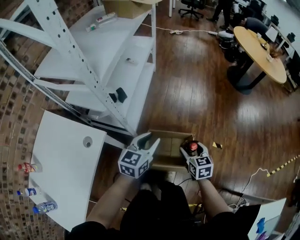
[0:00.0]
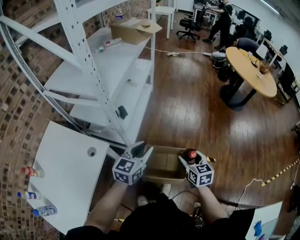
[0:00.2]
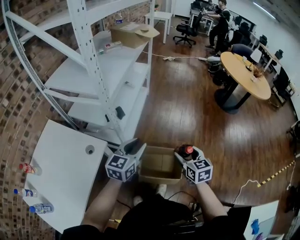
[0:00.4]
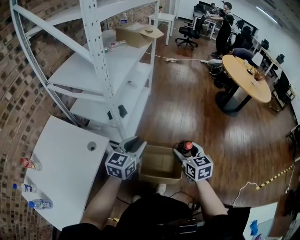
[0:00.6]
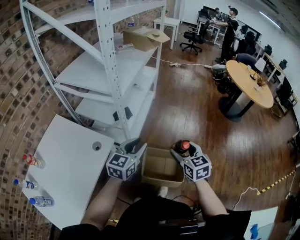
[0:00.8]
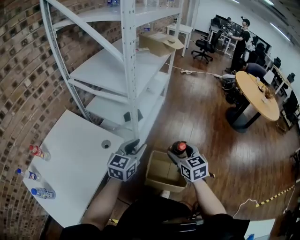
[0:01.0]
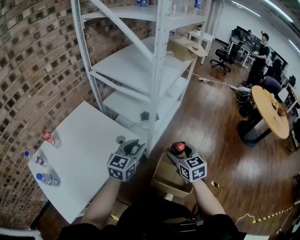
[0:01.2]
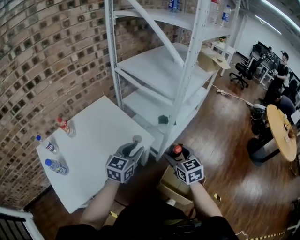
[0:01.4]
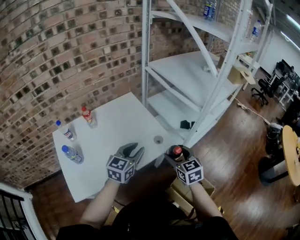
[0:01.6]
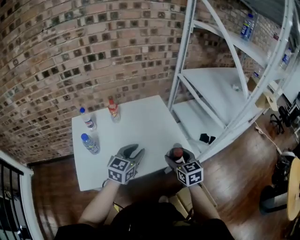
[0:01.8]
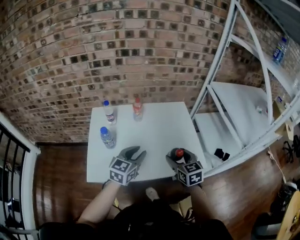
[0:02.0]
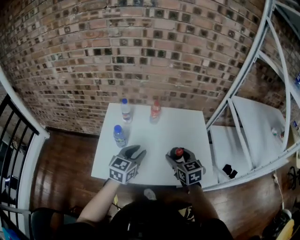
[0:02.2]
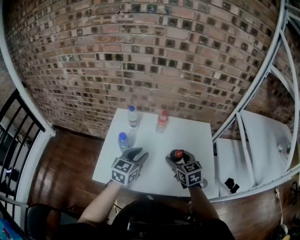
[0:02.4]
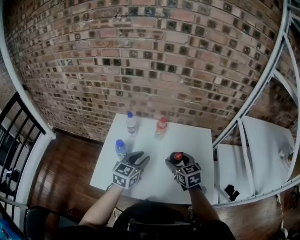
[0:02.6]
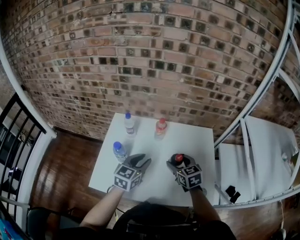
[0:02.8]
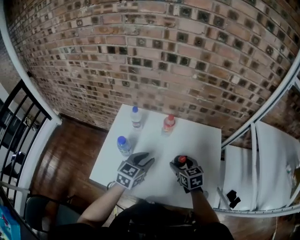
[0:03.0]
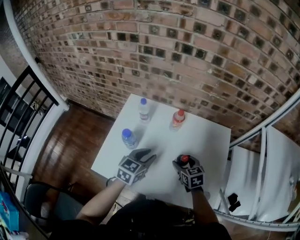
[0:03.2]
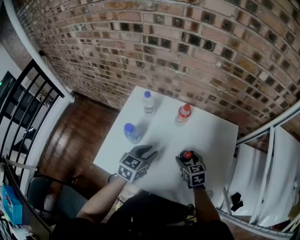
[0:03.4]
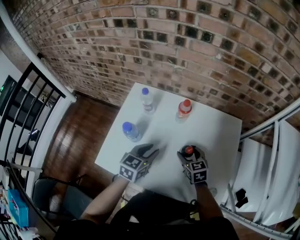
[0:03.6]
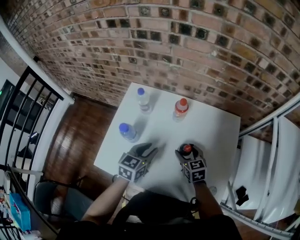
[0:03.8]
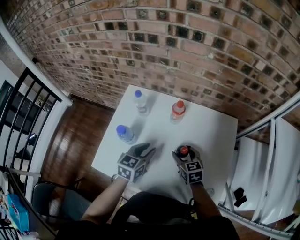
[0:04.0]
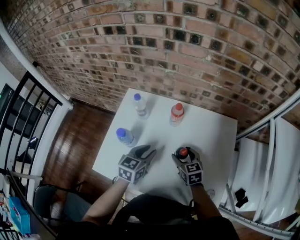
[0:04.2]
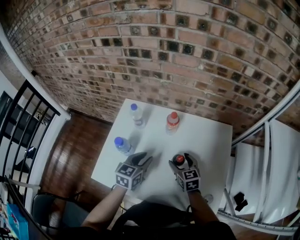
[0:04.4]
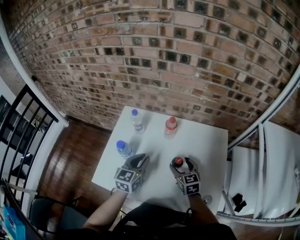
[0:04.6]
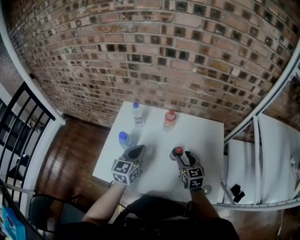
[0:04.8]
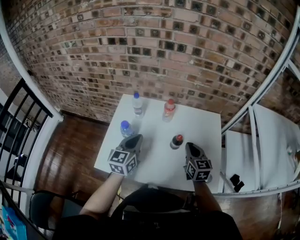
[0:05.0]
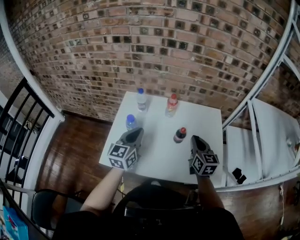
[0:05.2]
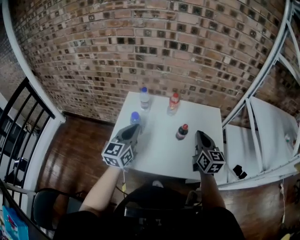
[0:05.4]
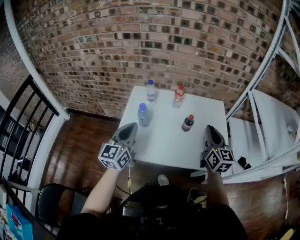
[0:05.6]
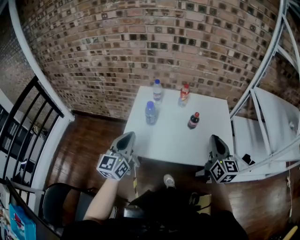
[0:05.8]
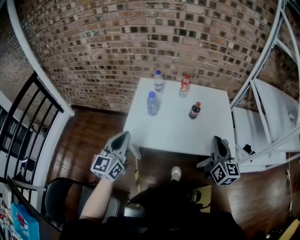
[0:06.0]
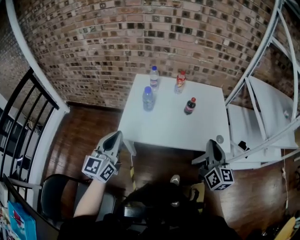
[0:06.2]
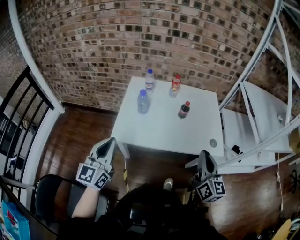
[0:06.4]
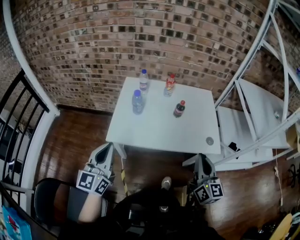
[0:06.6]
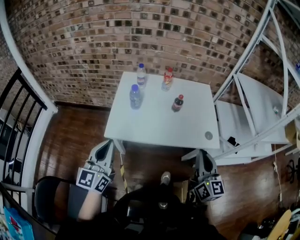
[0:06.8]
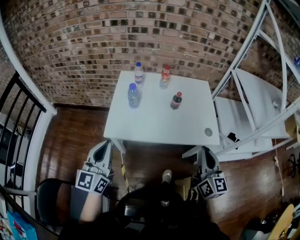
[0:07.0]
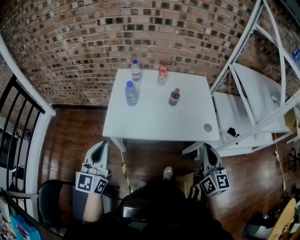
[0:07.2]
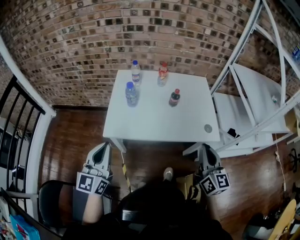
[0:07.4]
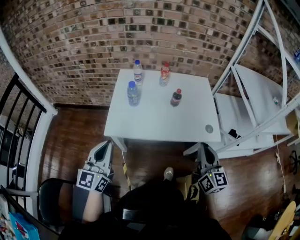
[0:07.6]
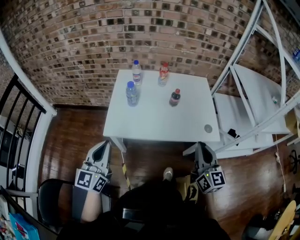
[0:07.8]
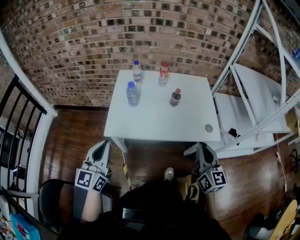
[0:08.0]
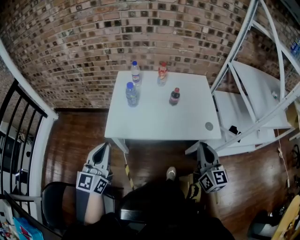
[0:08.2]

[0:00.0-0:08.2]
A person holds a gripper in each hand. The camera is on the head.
0:00.0 to 0:01.6: The pair of grippers is taken some 40 cm. The right gripper swivels some 50 degrees. The left gripper swivels some 40 degrees.
0:01.6 to 0:03.2: The right gripper shifts by roughly 40 cm, and rotates about 50 degrees. Meanwhile the left gripper shifts by some 30 cm, and changes its angle by some 50 degrees.
0:03.2 to 0:05.0: The left gripper shifts roughly 10 cm upward and to the left, and closes up; the right gripper shifts approximately 10 cm upward, swivels roughly 30 degrees, and closes.
0:05.0 to 0:06.6: The left gripper travels backward and to the left by approximately 35 cm. Meanwhile the right gripper goes some 35 cm backward, and rotates about 20 degrees.
0:06.6 to 0:08.2: There are only small adjustments of the grippers.

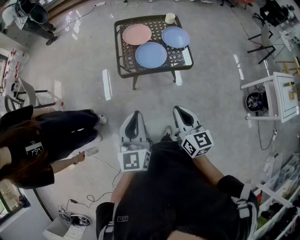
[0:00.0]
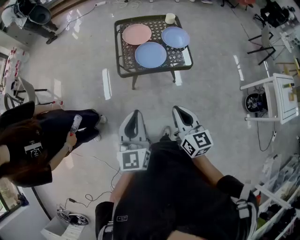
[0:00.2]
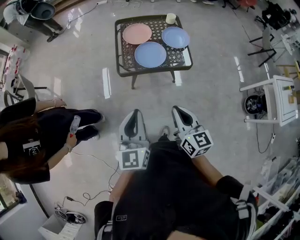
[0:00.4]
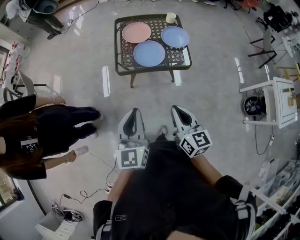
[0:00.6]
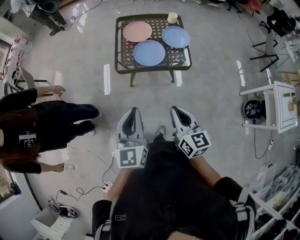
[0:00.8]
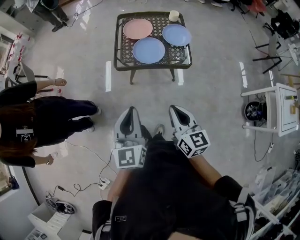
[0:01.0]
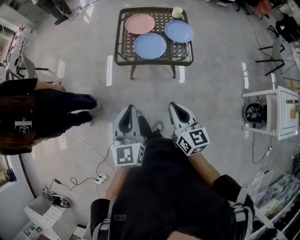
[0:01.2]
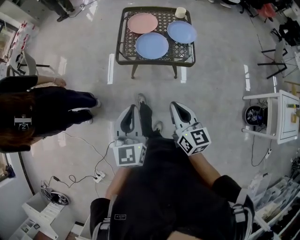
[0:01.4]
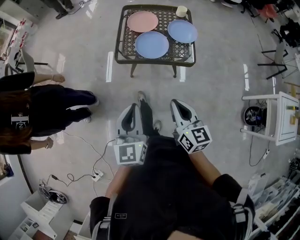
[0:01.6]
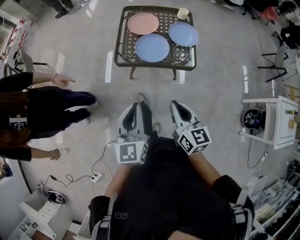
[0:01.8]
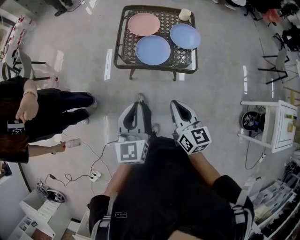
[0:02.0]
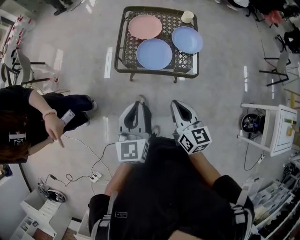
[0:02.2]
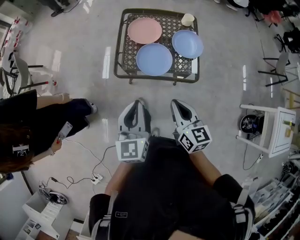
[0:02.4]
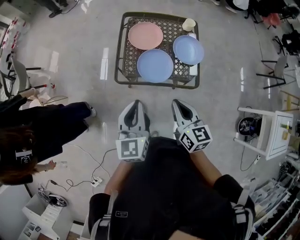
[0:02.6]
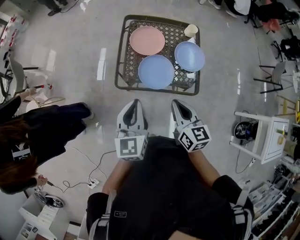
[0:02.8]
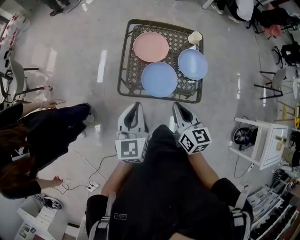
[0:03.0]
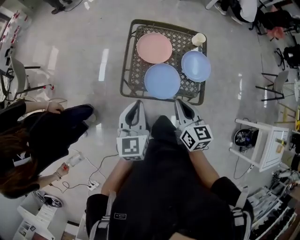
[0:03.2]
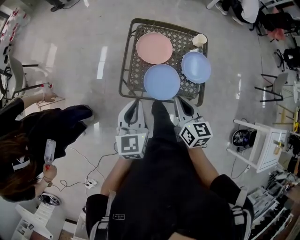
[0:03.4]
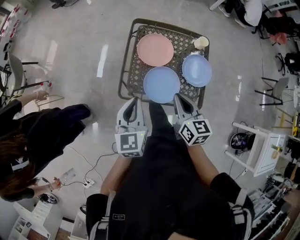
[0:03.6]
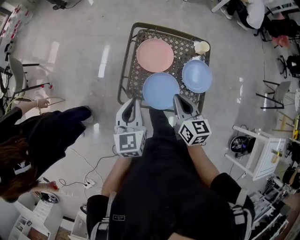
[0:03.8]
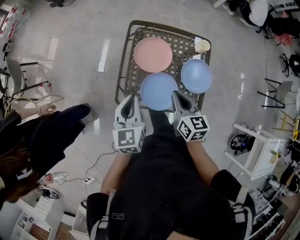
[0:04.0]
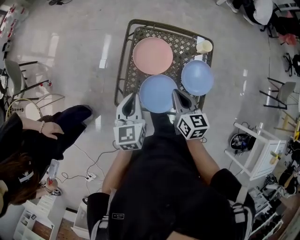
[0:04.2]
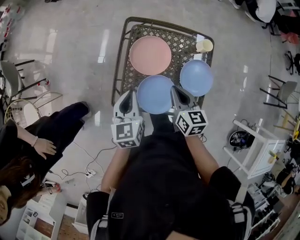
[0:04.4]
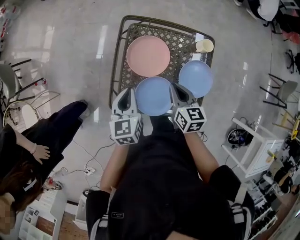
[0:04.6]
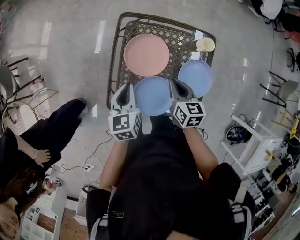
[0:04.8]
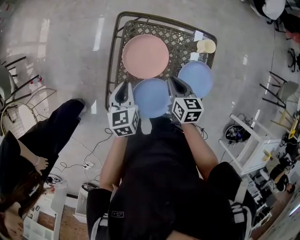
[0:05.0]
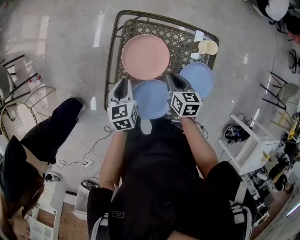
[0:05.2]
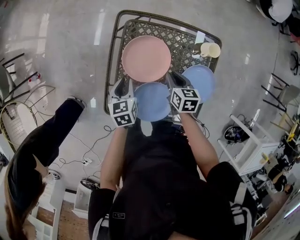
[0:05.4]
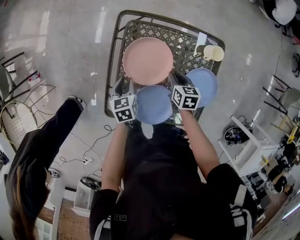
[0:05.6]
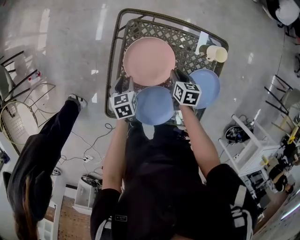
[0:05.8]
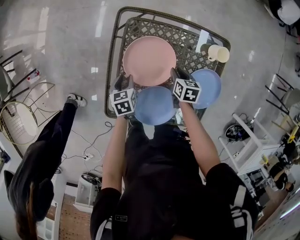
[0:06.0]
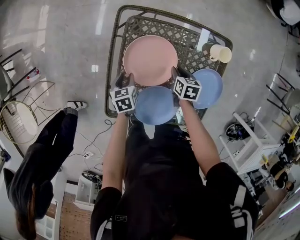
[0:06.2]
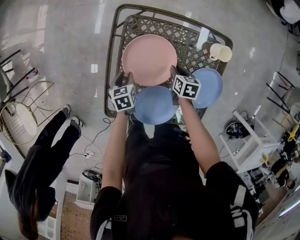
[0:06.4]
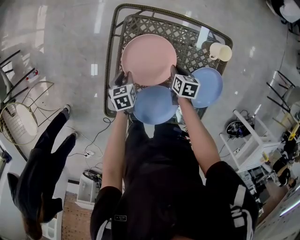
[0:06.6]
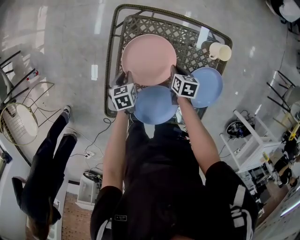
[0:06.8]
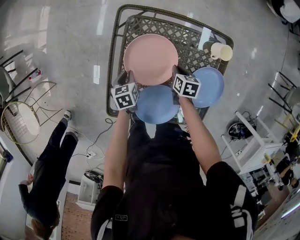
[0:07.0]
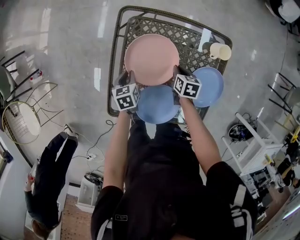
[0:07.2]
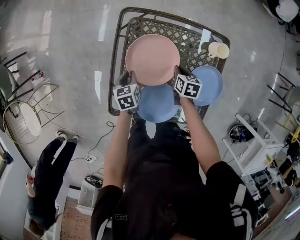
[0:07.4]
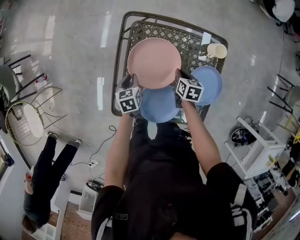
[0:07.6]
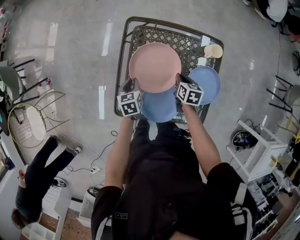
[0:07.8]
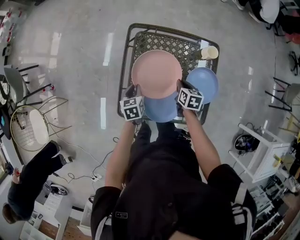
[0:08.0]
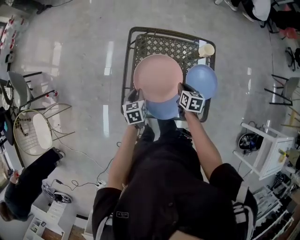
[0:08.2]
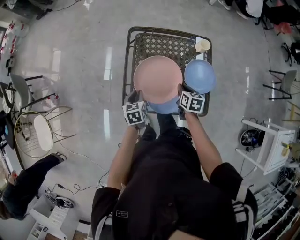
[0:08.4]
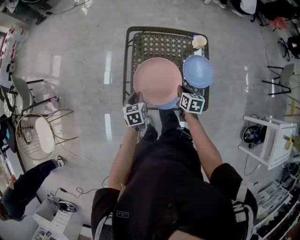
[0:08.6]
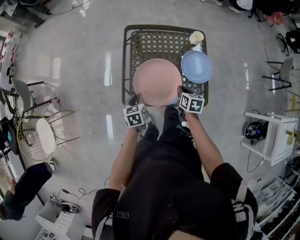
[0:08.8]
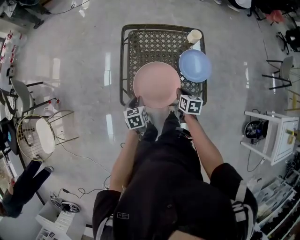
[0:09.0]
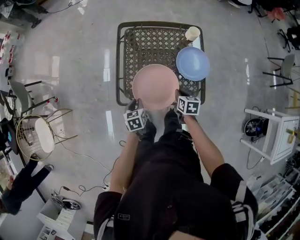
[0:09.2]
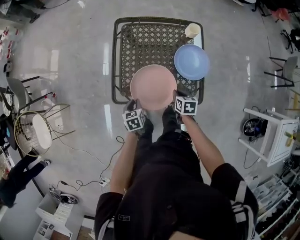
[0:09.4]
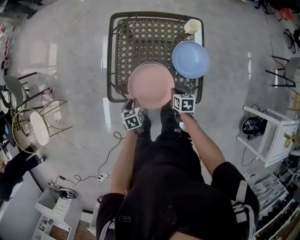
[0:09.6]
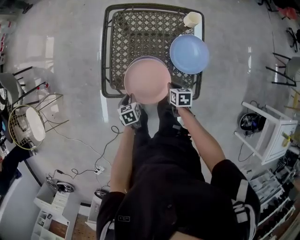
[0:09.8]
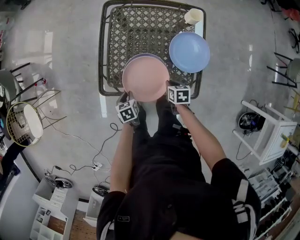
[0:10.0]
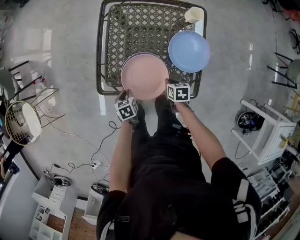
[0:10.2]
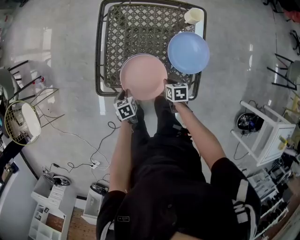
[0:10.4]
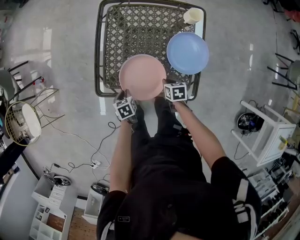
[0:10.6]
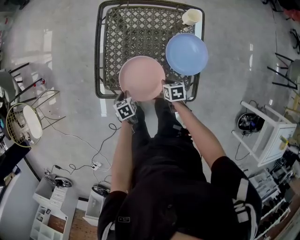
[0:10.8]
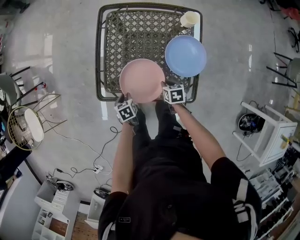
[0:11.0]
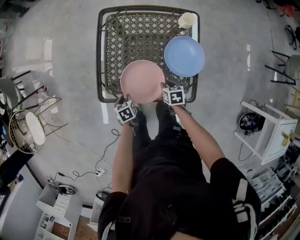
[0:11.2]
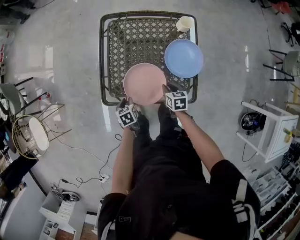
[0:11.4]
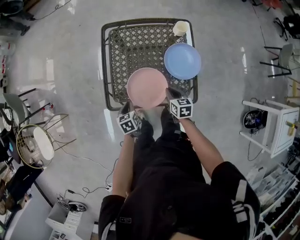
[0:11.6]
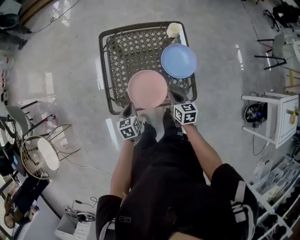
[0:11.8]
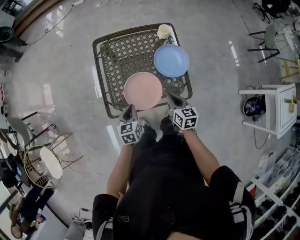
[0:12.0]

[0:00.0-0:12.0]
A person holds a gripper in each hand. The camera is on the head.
0:00.0 to 0:01.6: The two grippers go approximately 10 cm to the right.
0:01.6 to 0:03.0: The two grippers go some 30 cm forward.
0:03.0 to 0:04.4: The right gripper shifts about 25 cm forward, while the left gripper is displaced forward and downward by some 25 cm.
0:04.4 to 0:06.0: Both grippers travel together downward and forward, approximately 30 cm. The left gripper turns by some 30 degrees, and opens up, while the right gripper rotates about 30 degrees.
0:06.0 to 0:07.6: There are only small adjustments of the grippers.
0:07.6 to 0:09.0: The two grippers go about 25 cm backward.
0:09.0 to 0:10.4: The grippers both shift downward by roughly 15 cm. The right gripper rotates some 20 degrees.
0:10.4 to 0:12.0: Both grippers travel together upward, some 20 cm. The left gripper rotates some 40 degrees, while the right gripper rotates some 40 degrees.

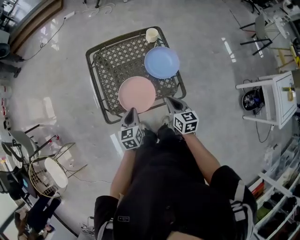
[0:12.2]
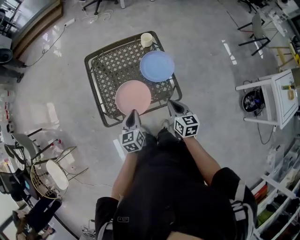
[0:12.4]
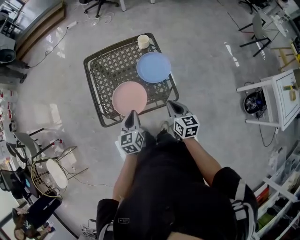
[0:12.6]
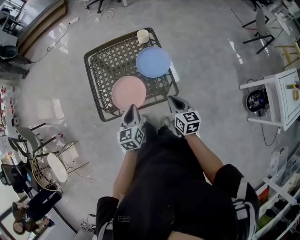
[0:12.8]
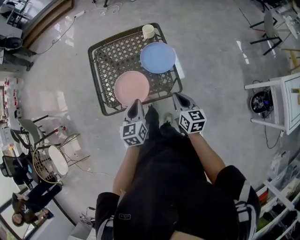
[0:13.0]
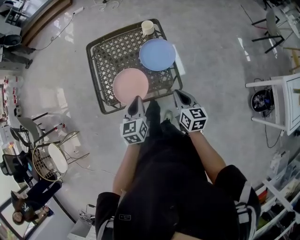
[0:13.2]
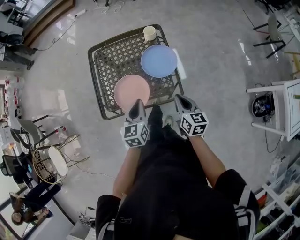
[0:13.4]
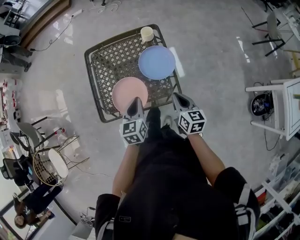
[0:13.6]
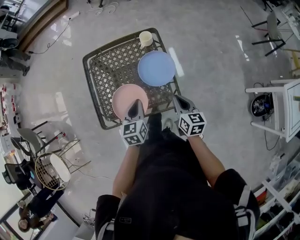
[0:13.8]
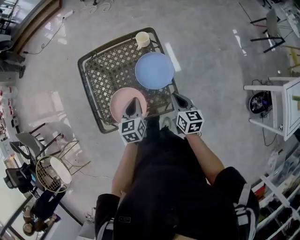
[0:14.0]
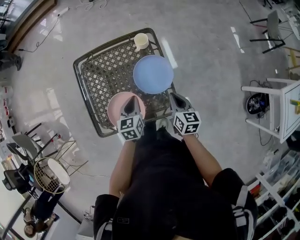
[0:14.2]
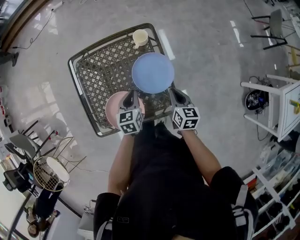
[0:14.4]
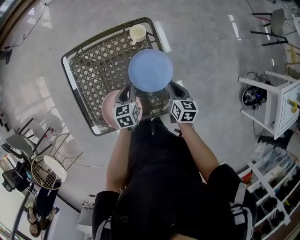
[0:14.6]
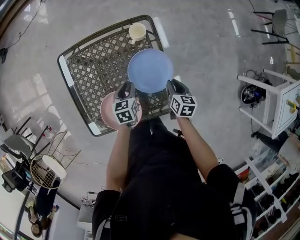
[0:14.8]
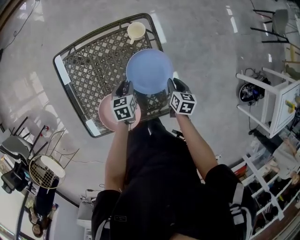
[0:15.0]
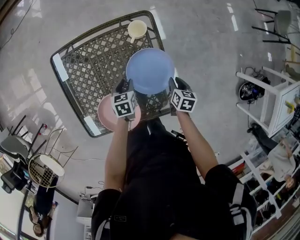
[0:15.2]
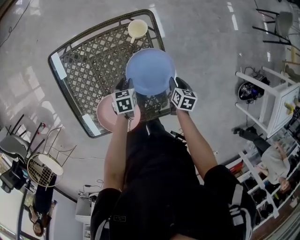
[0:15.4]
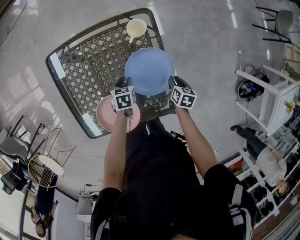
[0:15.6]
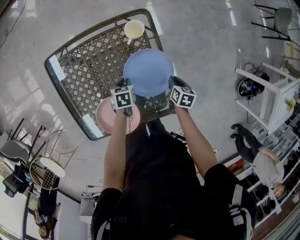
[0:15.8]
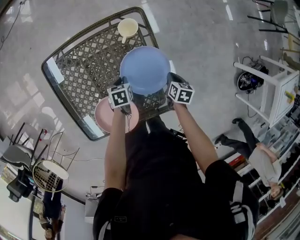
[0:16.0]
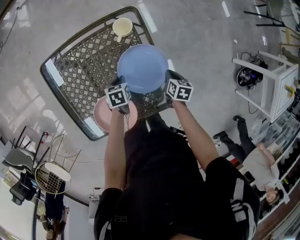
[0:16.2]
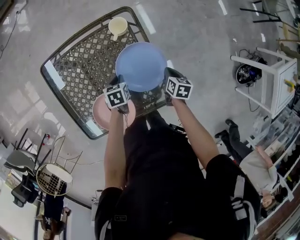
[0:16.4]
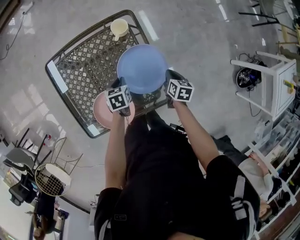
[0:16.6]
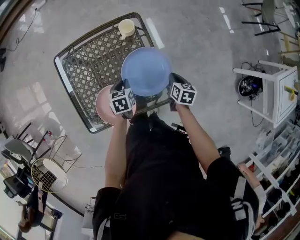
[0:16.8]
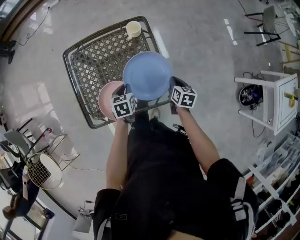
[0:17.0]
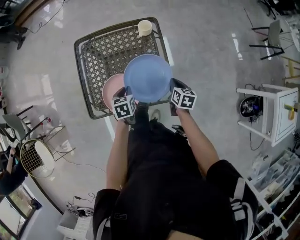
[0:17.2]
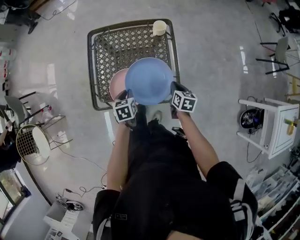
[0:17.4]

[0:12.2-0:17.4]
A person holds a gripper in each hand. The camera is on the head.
0:12.2 to 0:14.0: Both grippers move to the right and forward, some 15 cm.
0:14.0 to 0:15.6: The two grippers go some 30 cm downward and forward. The left gripper tips its fingers downward by some 30 degrees, and opens its fingers, while the right gripper rotates approximately 30 degrees.
0:15.6 to 0:17.4: The left gripper moves about 30 cm, rotates some 20 degrees, and closes; the right gripper ends up some 20 cm from where it was, and swivels approximately 20 degrees.
